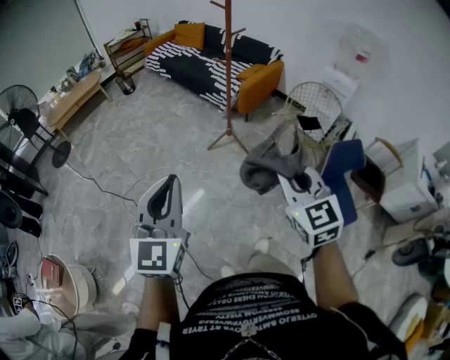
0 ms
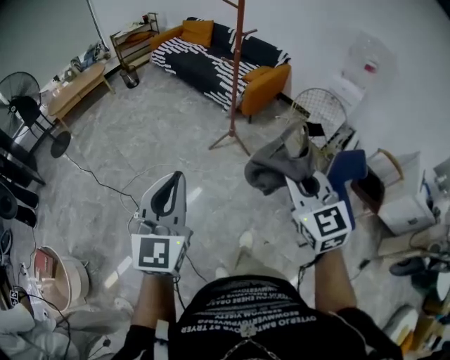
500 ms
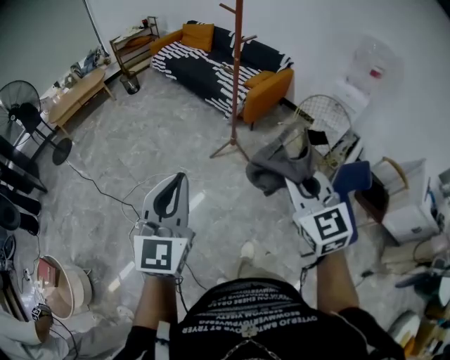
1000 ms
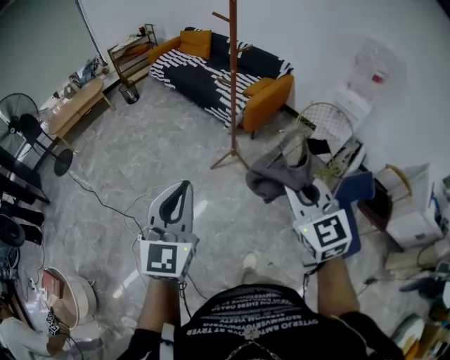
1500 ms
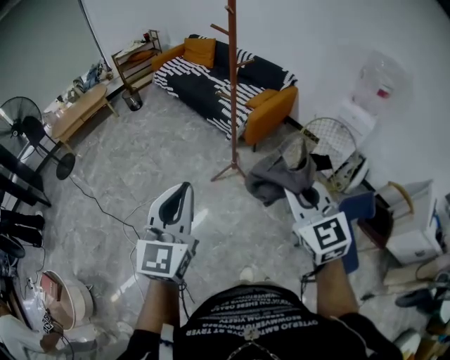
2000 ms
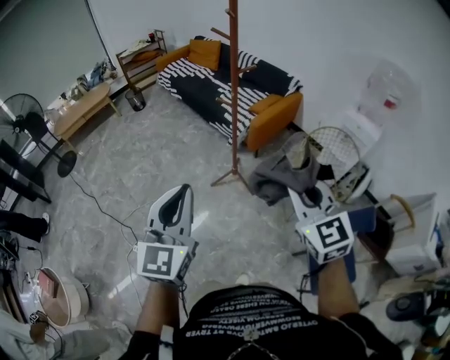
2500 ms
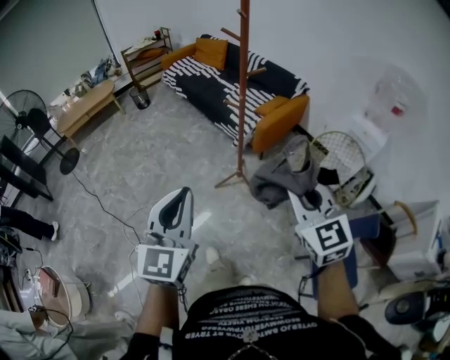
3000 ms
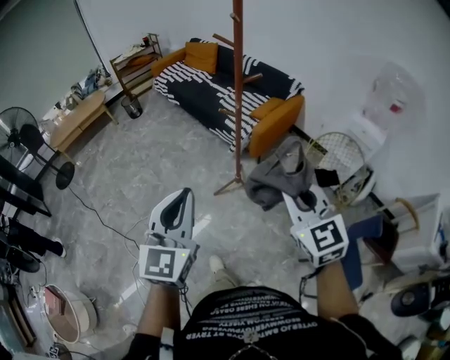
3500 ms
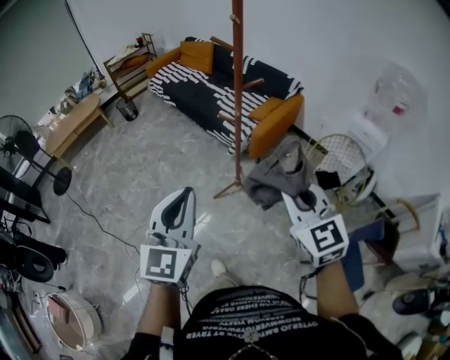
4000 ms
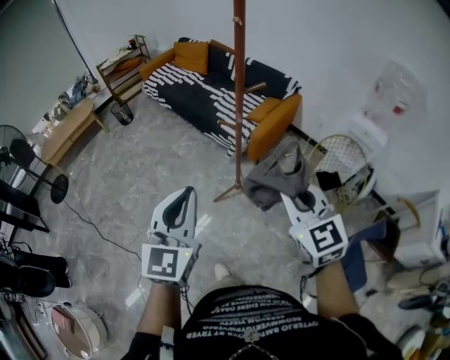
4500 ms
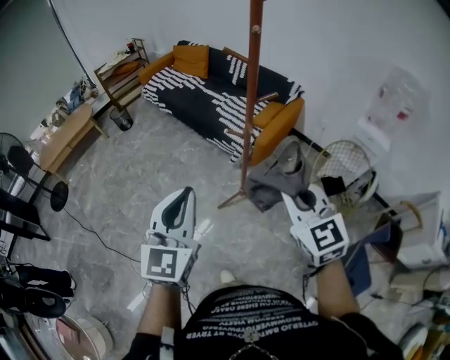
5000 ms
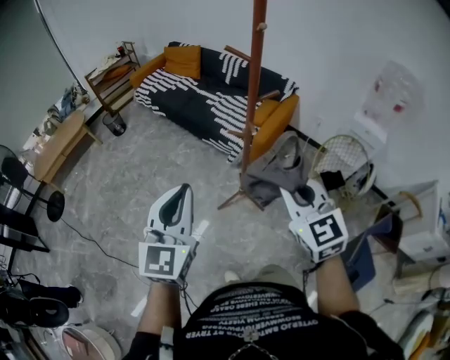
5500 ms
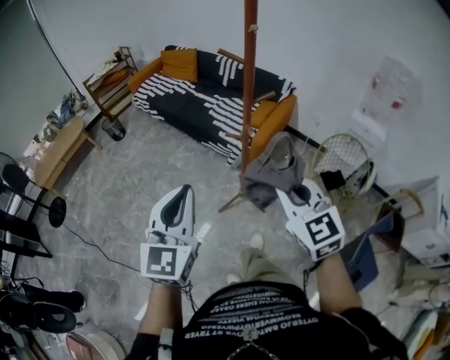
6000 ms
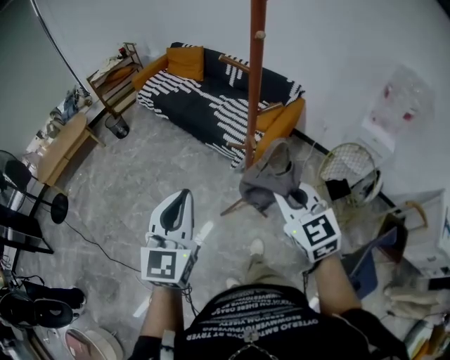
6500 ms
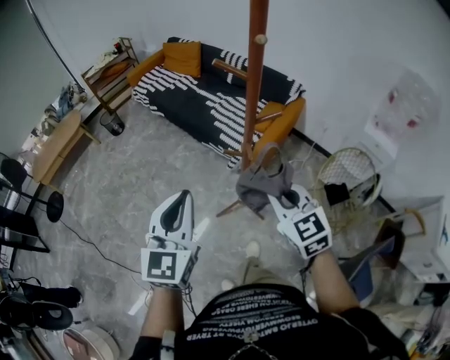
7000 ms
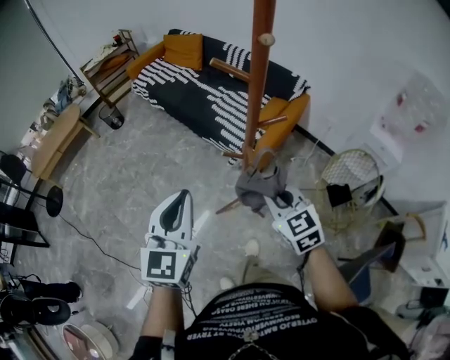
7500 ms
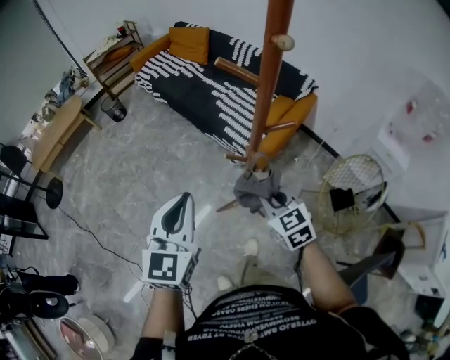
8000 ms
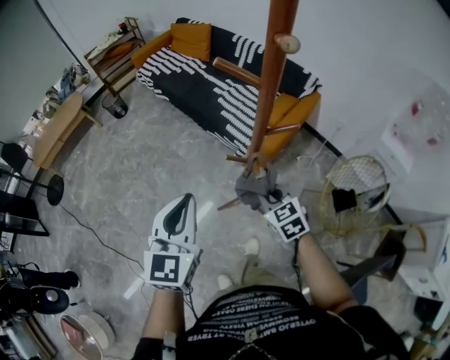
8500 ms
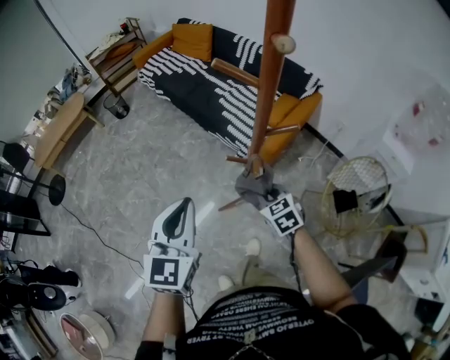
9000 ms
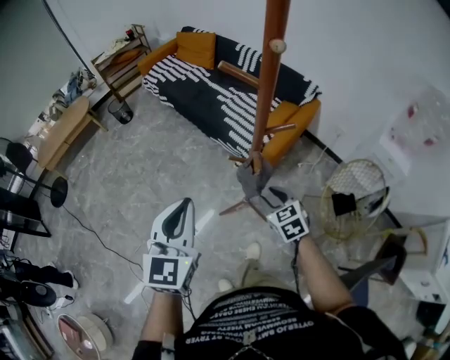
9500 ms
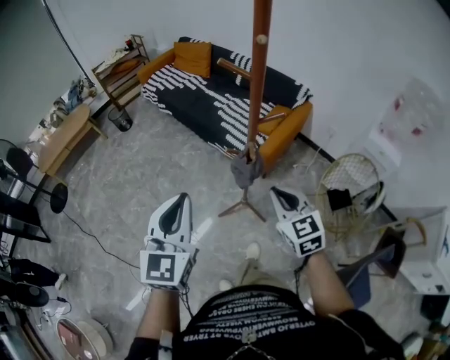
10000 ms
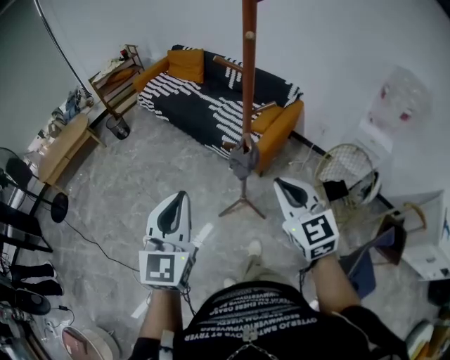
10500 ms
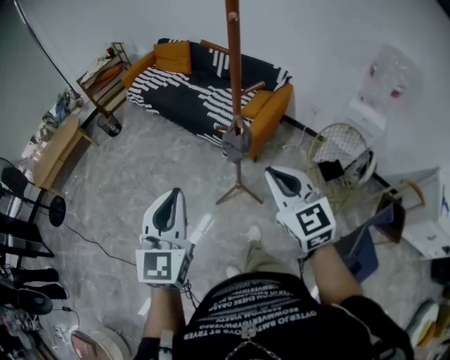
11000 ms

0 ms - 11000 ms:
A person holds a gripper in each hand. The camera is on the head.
0 ms - 2000 ms: The right gripper heads forward, covering about 20 cm. The left gripper shifts some 25 cm forward and to the right.
2000 ms - 3500 ms: Both grippers travel together forward, roughly 15 cm.
3500 ms - 5500 ms: Both grippers move forward and to the left, approximately 20 cm.
5500 ms - 7500 ms: The left gripper is displaced forward by some 15 cm. The right gripper heads forward and downward, covering roughly 20 cm.
7500 ms - 9000 ms: The right gripper is displaced downward and forward by some 15 cm.
9000 ms - 11000 ms: The left gripper travels backward and upward by about 20 cm. Meanwhile the right gripper heads upward and backward, covering about 35 cm, tilts its fingers about 30 degrees upward, and opens, then closes once more.

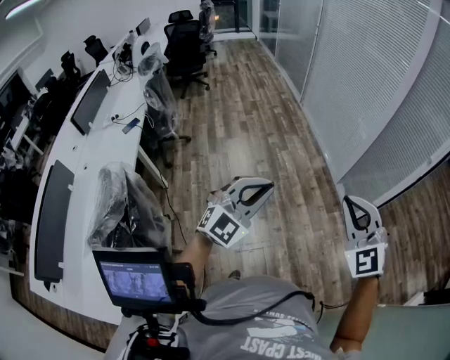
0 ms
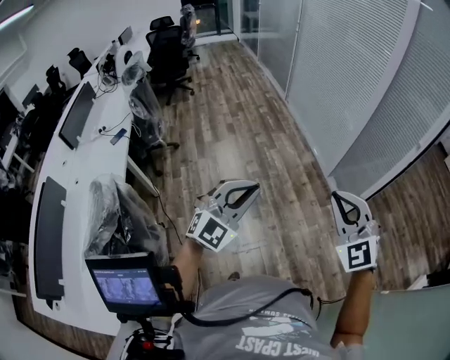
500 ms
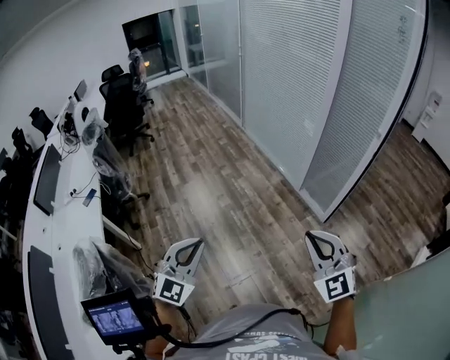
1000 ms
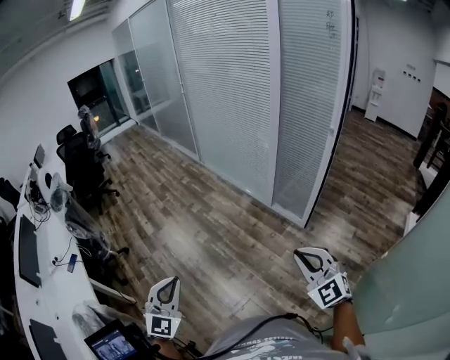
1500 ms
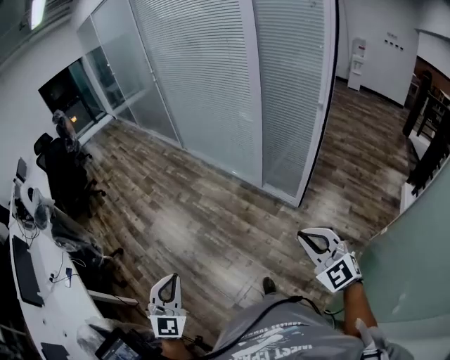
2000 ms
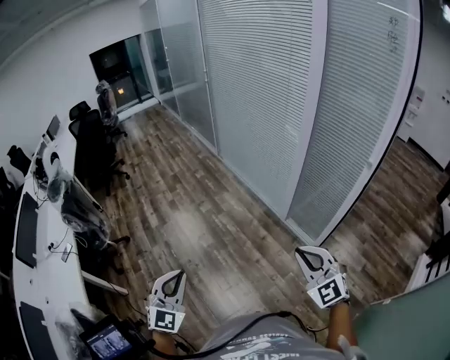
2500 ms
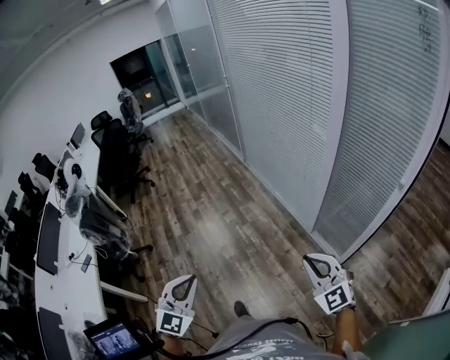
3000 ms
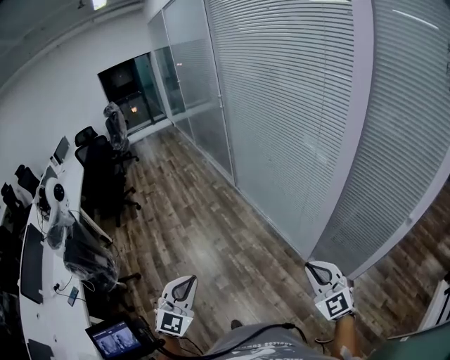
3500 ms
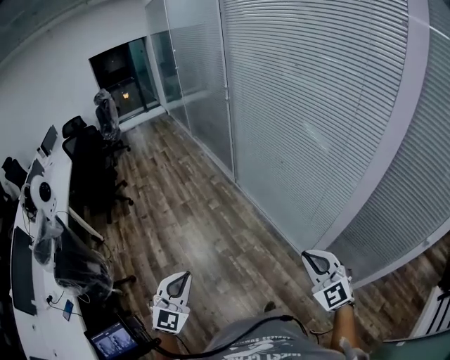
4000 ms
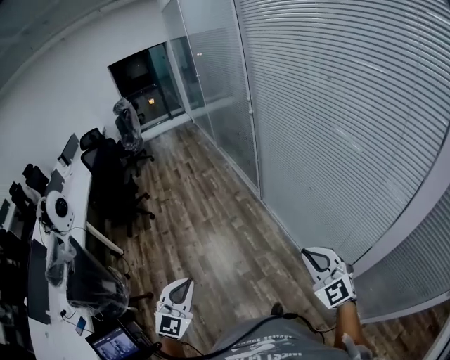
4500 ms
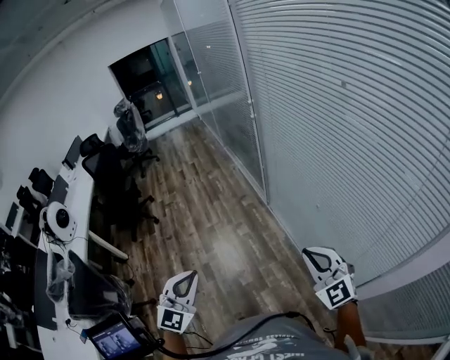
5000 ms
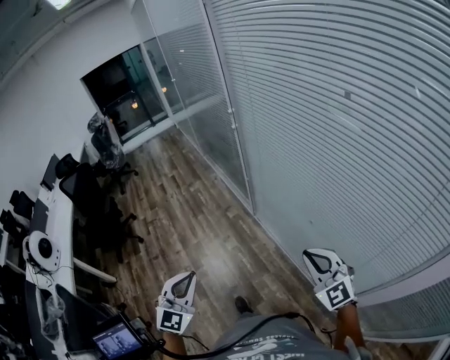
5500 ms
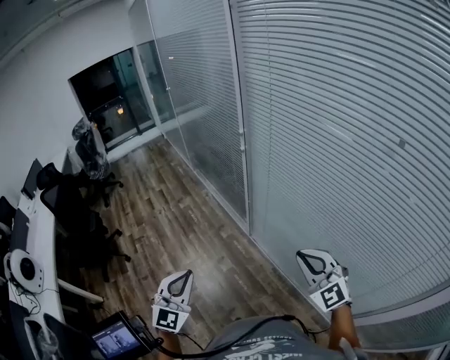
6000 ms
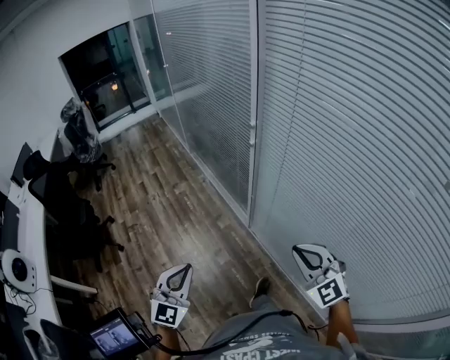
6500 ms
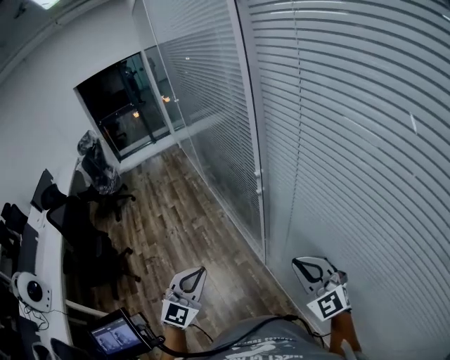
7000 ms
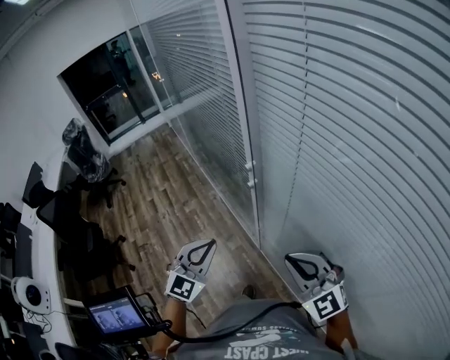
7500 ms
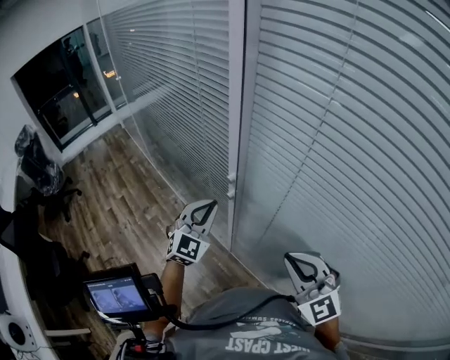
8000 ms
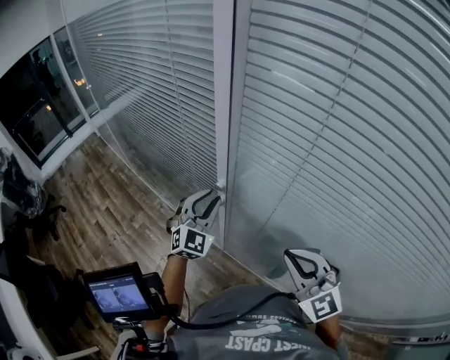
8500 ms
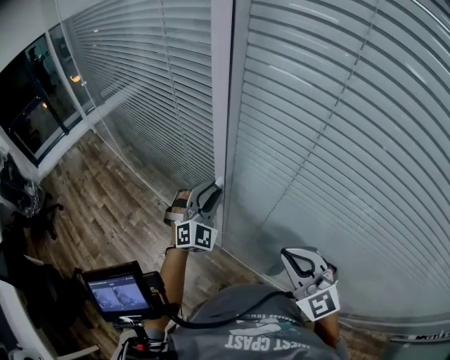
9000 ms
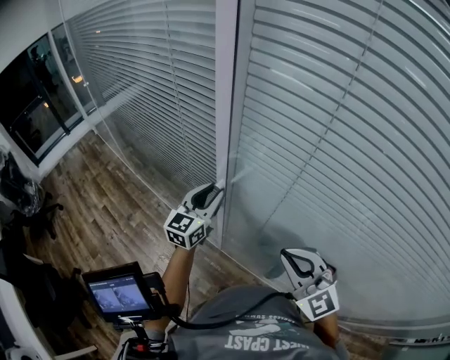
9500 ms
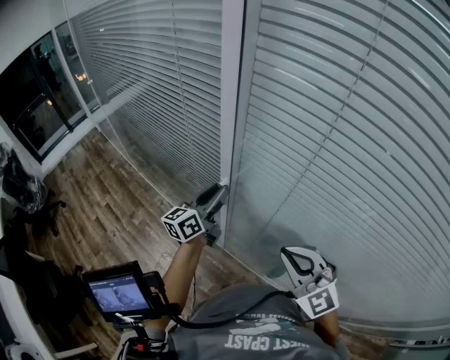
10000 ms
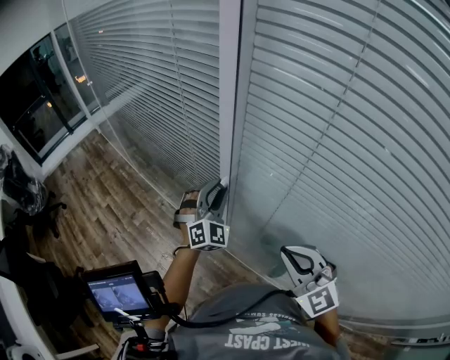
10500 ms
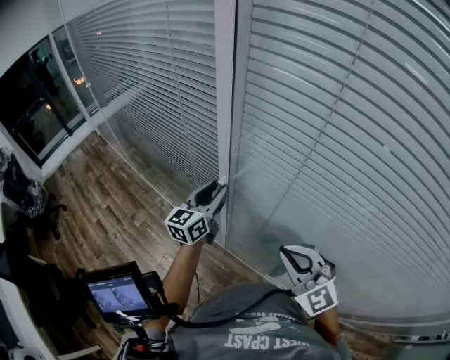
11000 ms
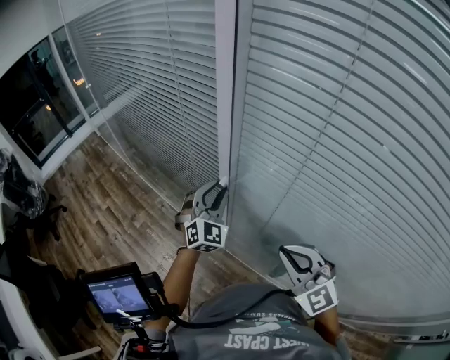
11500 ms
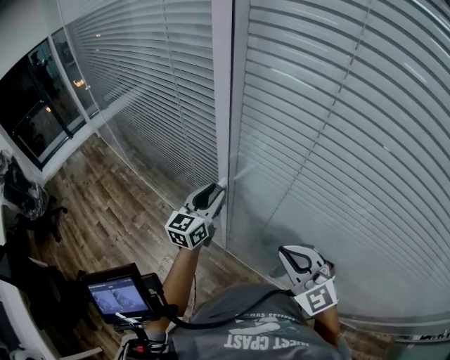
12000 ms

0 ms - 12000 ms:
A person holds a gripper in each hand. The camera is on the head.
0 ms - 2000 ms: The left gripper goes about 10 cm downward and to the left, while the right gripper travels to the right and downward by roughly 10 cm, and rotates approximately 30 degrees.
2000 ms - 4000 ms: The two grippers travel together, forward, approximately 70 cm.
4000 ms - 6000 ms: The two grippers travel together, forward, about 70 cm.
6000 ms - 8000 ms: Both grippers are carried forward, some 50 cm. The left gripper turns by about 20 degrees.
8000 ms - 10000 ms: The left gripper travels forward by some 10 cm, rolls counterclockwise, seen from behind, by some 60 degrees, and opens.
10000 ms - 12000 ms: The left gripper swivels approximately 20 degrees.

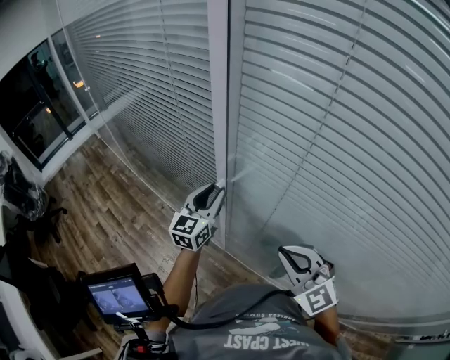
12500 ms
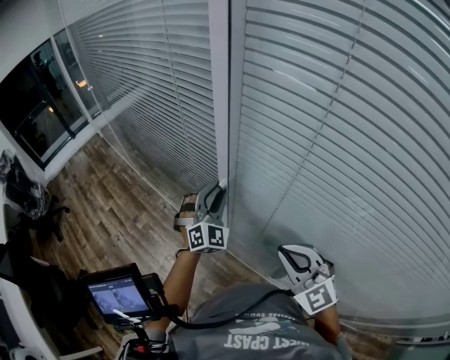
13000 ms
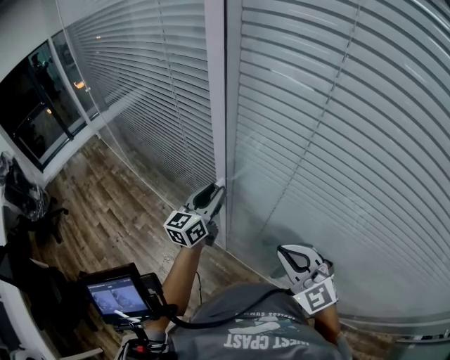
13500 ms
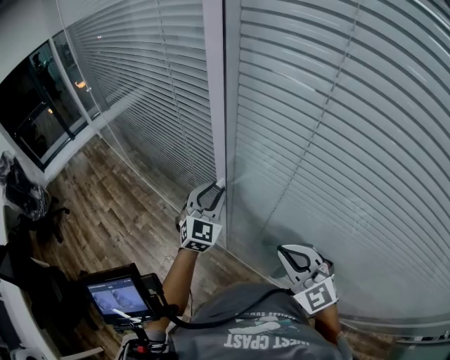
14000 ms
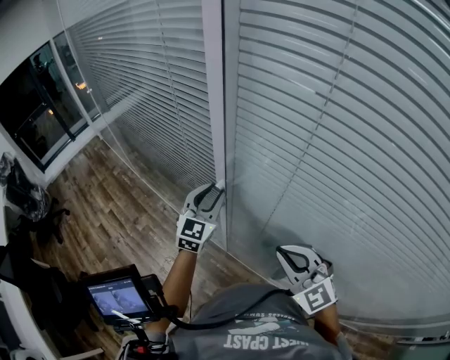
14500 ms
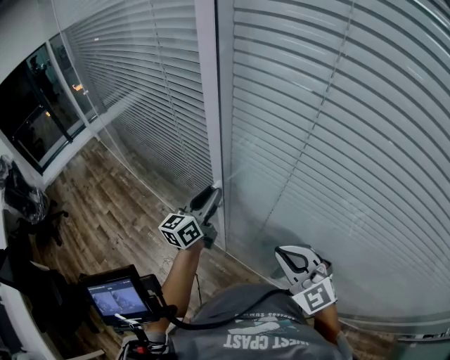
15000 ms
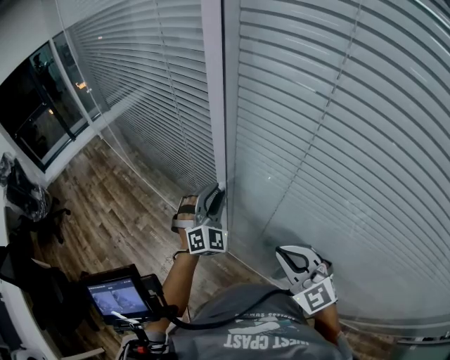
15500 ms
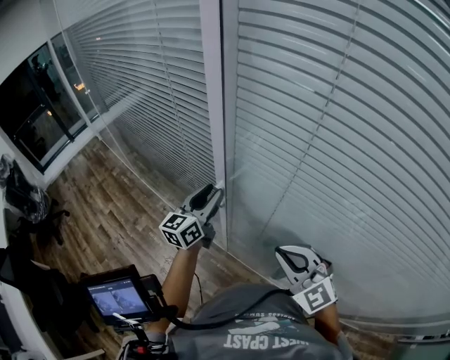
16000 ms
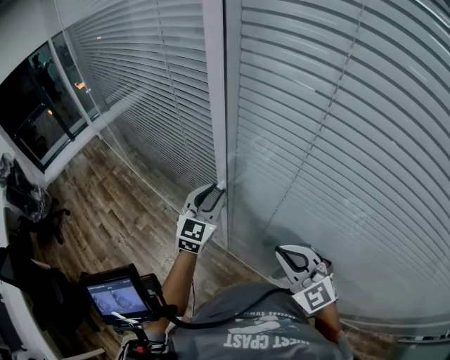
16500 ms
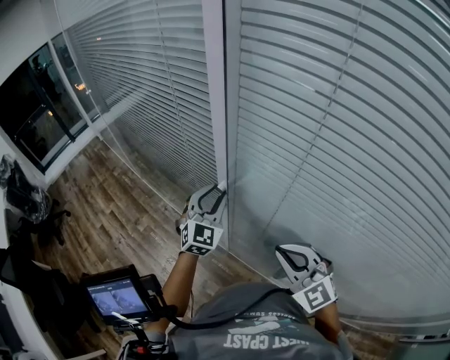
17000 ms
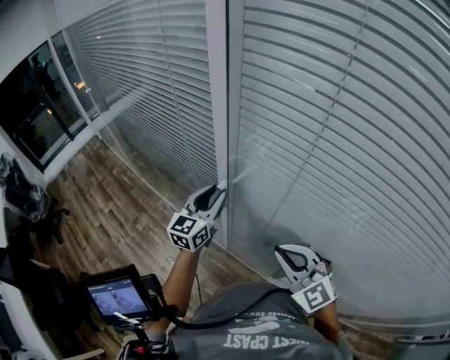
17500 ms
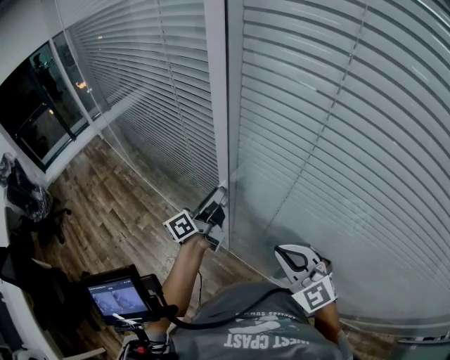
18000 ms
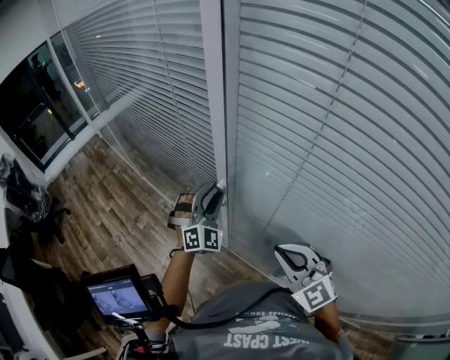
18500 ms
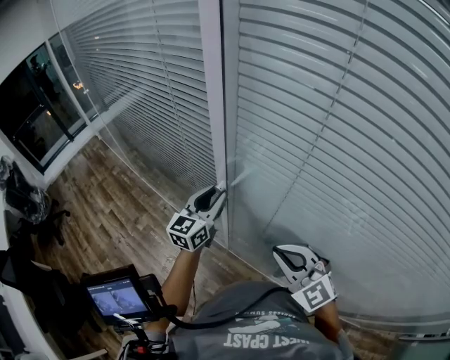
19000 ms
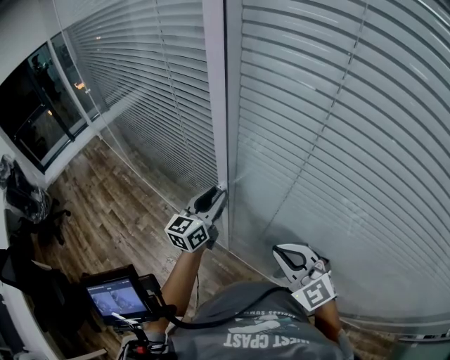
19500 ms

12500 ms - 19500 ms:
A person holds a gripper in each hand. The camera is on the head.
14500 ms - 16000 ms: The left gripper swivels roughly 40 degrees.
